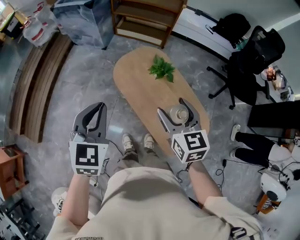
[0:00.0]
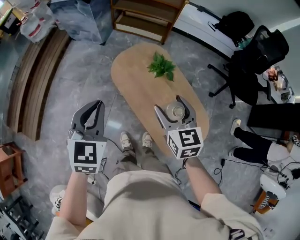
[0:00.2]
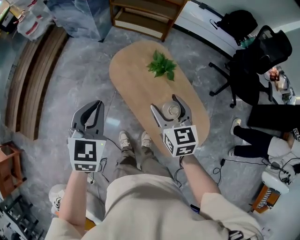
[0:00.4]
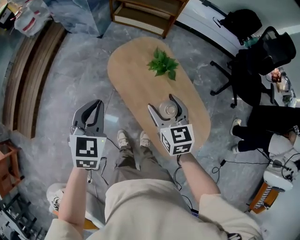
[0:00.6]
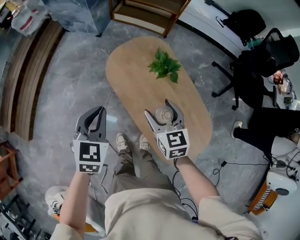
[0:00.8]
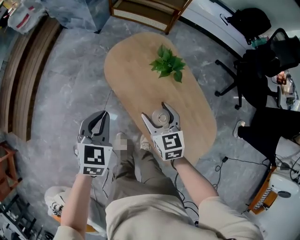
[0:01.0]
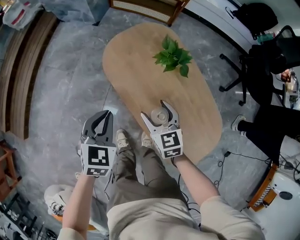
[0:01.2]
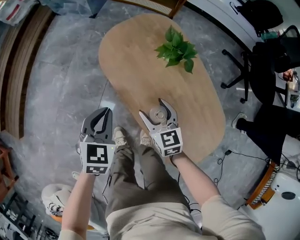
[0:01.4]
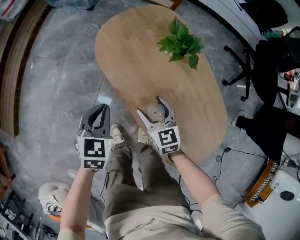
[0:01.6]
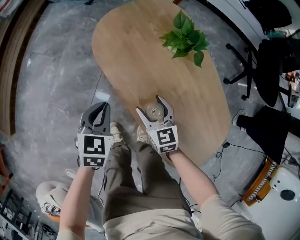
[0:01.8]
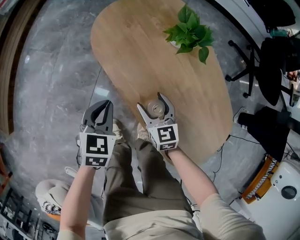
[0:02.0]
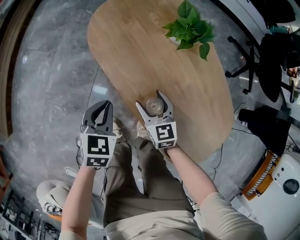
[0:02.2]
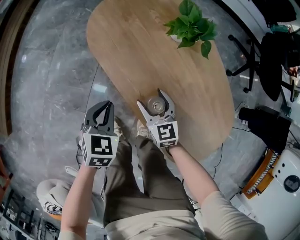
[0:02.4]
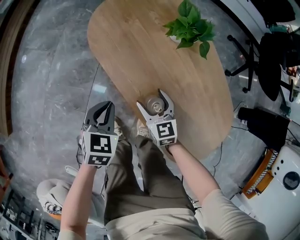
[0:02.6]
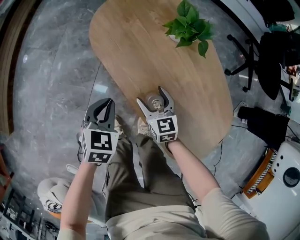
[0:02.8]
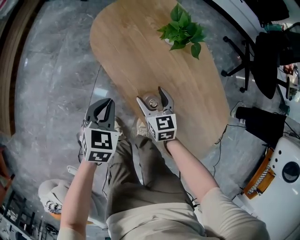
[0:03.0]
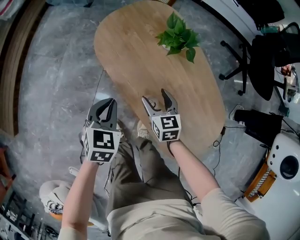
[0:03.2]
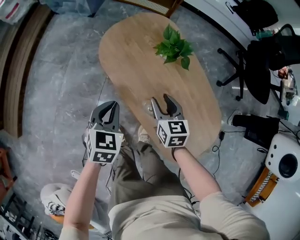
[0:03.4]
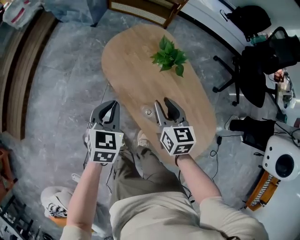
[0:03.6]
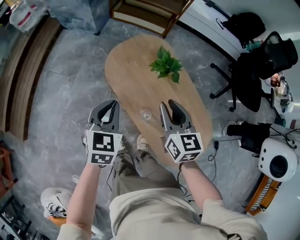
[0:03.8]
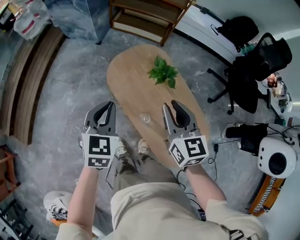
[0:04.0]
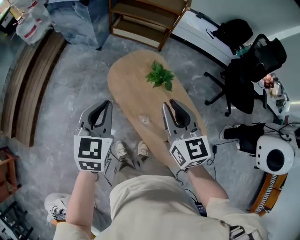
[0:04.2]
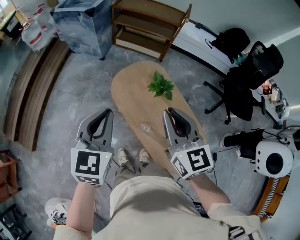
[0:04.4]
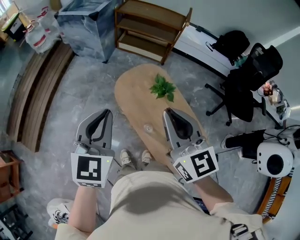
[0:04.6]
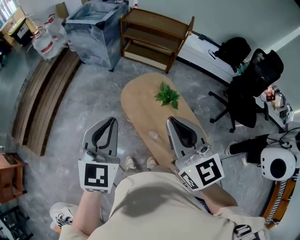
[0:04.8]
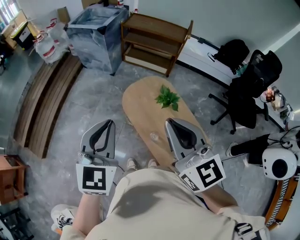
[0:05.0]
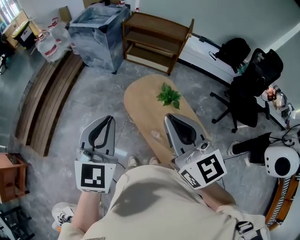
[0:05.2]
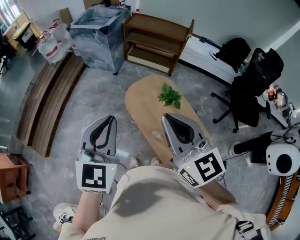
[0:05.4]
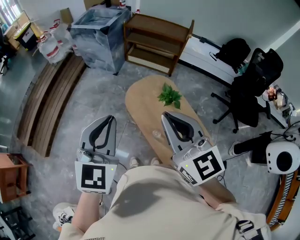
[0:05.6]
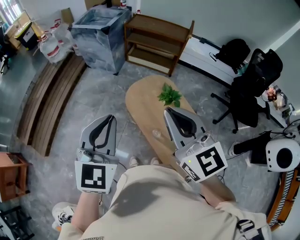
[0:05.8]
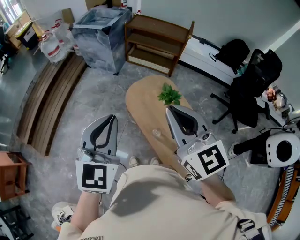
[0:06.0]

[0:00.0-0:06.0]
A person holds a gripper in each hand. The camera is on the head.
0.0 to 1.6 s: Both grippers travel together downward, some 50 cm. The left gripper swivels approximately 20 degrees.
1.6 to 3.0 s: The right gripper travels downward by some 5 cm.
3.0 to 4.4 s: Both grippers travel together upward, about 50 cm. The right gripper changes its angle by roughly 30 degrees, and closes. The left gripper rotates some 30 degrees.
4.4 to 6.0 s: The left gripper moves upward and backward, approximately 15 cm, while the right gripper goes some 15 cm upward, to the left and backward.

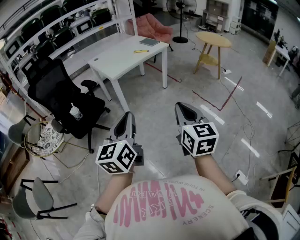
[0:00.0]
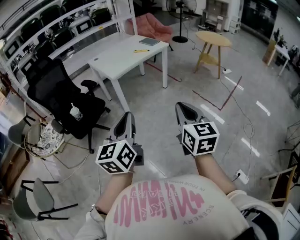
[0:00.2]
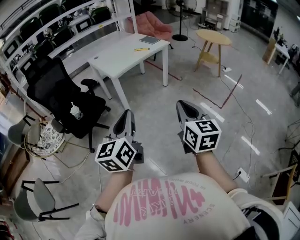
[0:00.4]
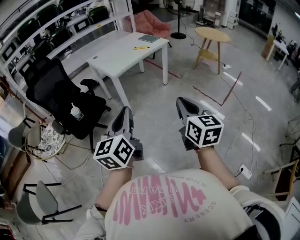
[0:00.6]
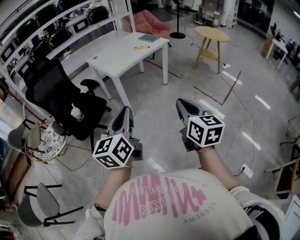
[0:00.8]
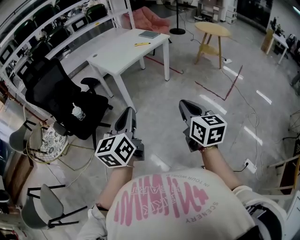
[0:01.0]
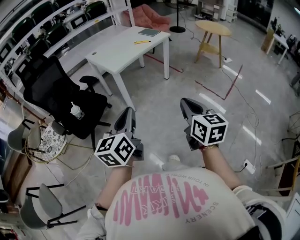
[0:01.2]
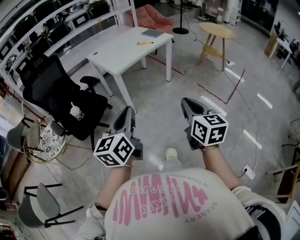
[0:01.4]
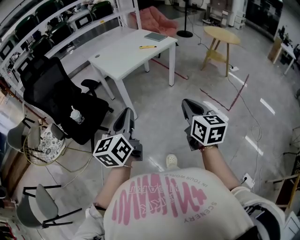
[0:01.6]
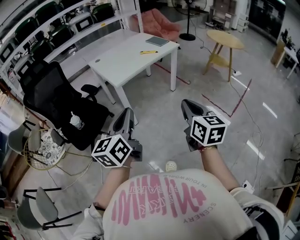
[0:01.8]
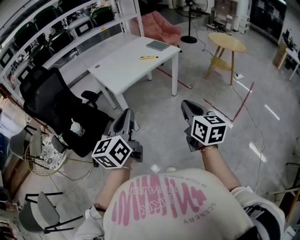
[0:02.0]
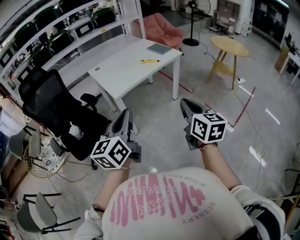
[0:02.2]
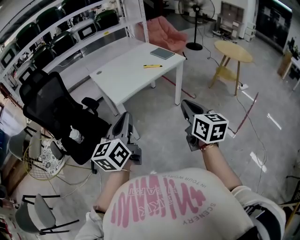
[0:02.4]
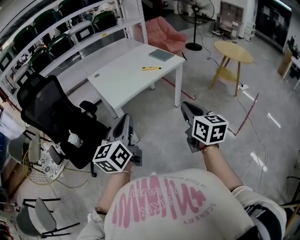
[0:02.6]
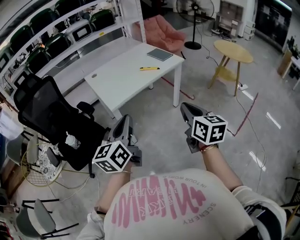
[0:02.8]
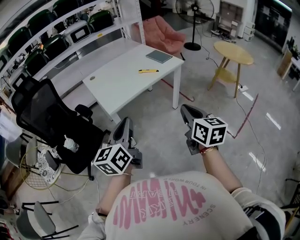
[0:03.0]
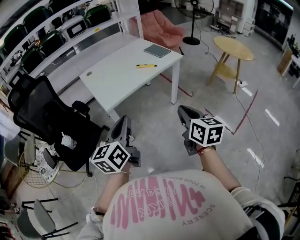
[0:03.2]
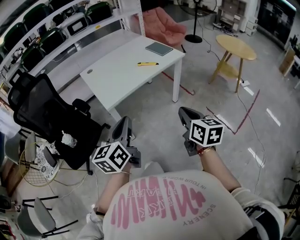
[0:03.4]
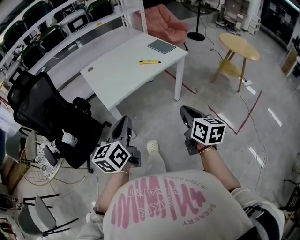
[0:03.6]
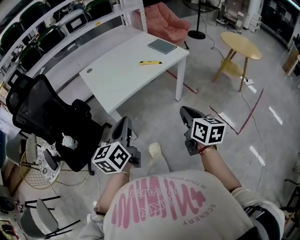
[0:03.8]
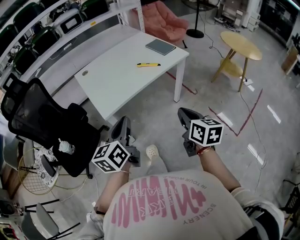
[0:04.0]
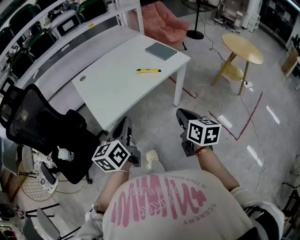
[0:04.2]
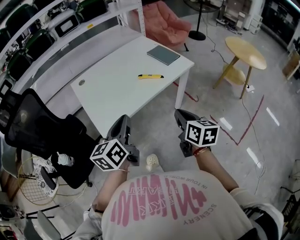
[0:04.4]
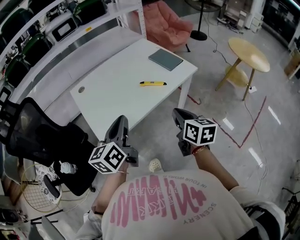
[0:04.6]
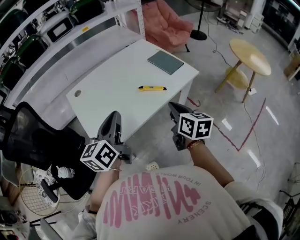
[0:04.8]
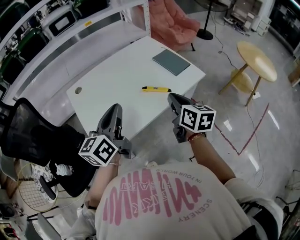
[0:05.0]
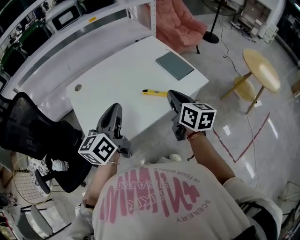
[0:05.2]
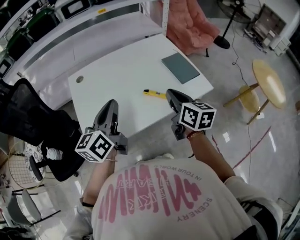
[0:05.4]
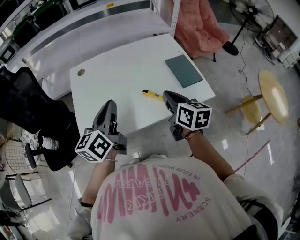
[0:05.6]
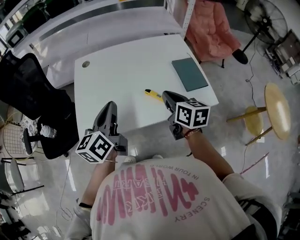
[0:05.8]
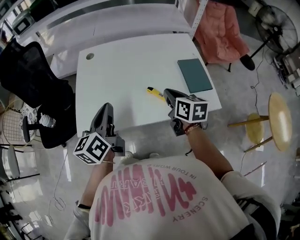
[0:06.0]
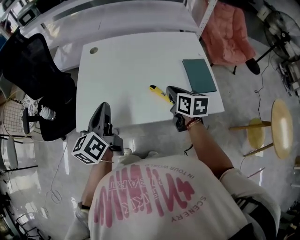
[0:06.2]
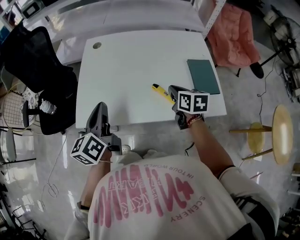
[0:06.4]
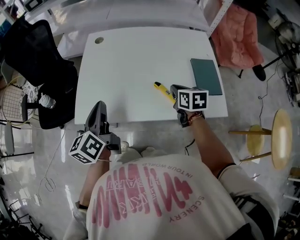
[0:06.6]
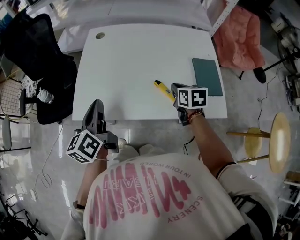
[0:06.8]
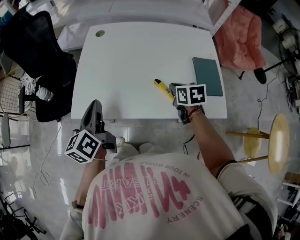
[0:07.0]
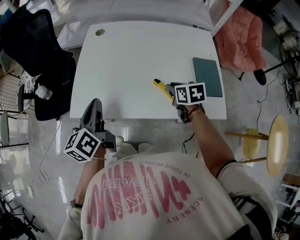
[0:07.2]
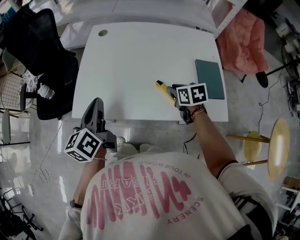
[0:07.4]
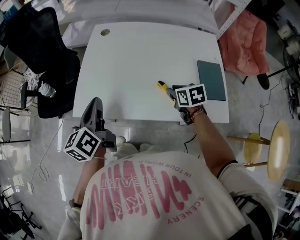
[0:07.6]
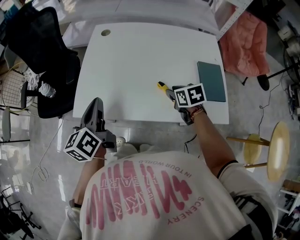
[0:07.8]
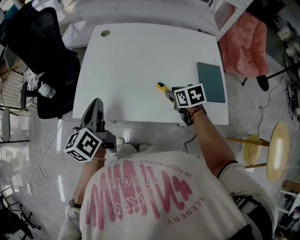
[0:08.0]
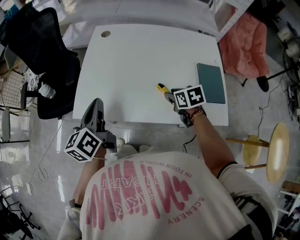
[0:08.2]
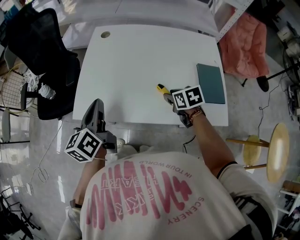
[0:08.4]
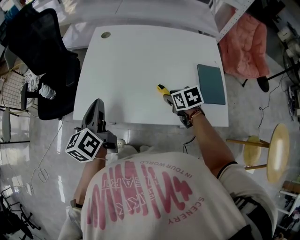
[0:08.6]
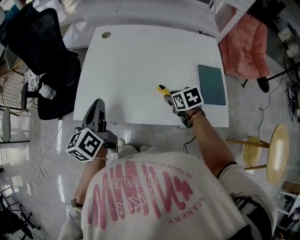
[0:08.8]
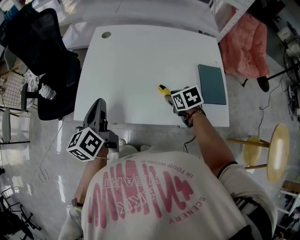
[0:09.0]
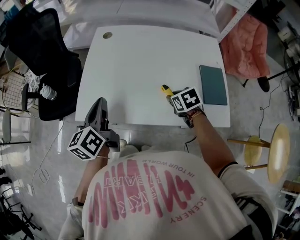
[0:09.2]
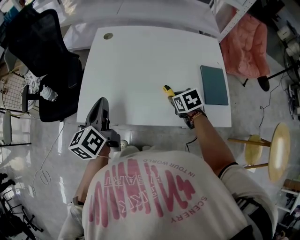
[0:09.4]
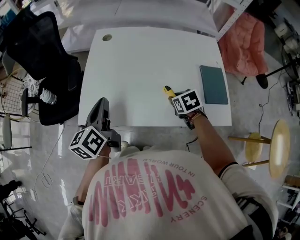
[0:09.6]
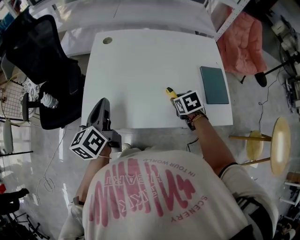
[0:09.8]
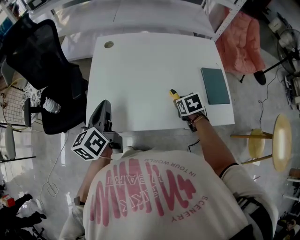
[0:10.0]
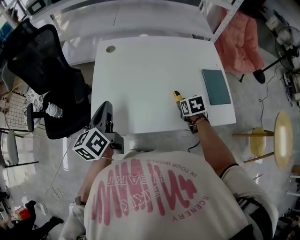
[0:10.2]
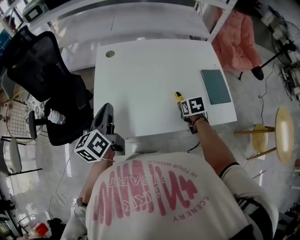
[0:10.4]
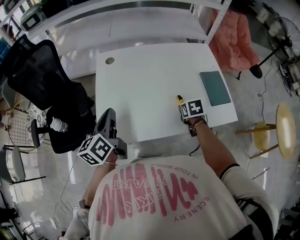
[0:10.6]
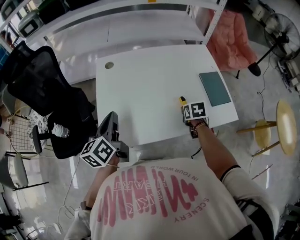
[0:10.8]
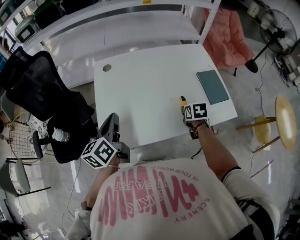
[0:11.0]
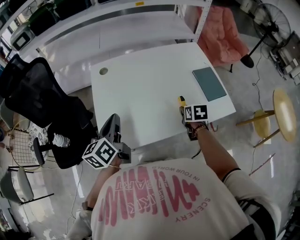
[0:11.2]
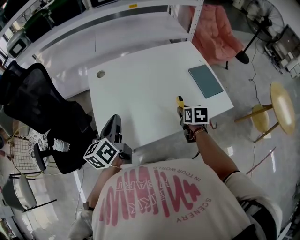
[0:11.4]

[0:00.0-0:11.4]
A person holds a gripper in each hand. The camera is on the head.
0.0 to 1.4 s: The right gripper moves forward, downward and to the left, approximately 15 cm. The left gripper goes approximately 15 cm forward, to the left and downward.
1.4 to 2.8 s: The grippers both shift forward by approximately 40 cm.
2.8 to 4.2 s: Both grippers move forward, approximately 30 cm.
4.2 to 5.6 s: The two grippers go some 40 cm forward. The right gripper rotates roughly 20 degrees; the left gripper changes its angle by about 20 degrees.
5.6 to 7.2 s: The right gripper shifts some 15 cm downward, and swivels roughly 40 degrees, while the left gripper goes about 10 cm downward, and rotates approximately 30 degrees.
7.2 to 8.6 s: There are only small adjustments of the grippers.
8.6 to 10.0 s: The left gripper goes approximately 5 cm forward.
10.0 to 11.4 s: The right gripper shifts some 5 cm upward, and turns by approximately 40 degrees.

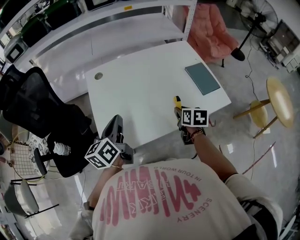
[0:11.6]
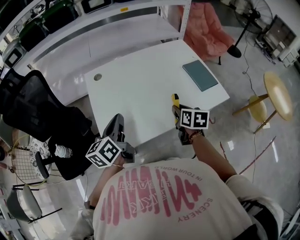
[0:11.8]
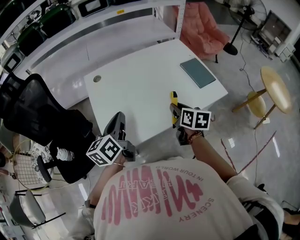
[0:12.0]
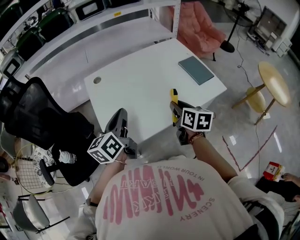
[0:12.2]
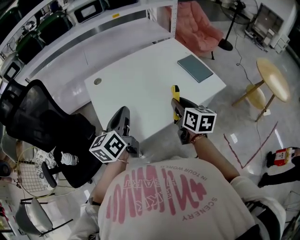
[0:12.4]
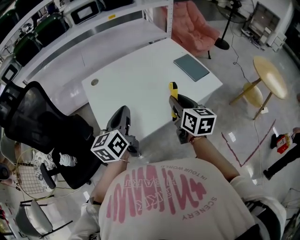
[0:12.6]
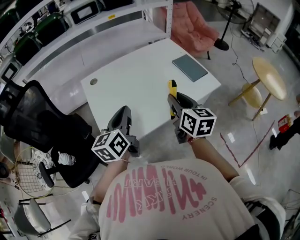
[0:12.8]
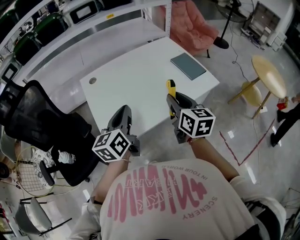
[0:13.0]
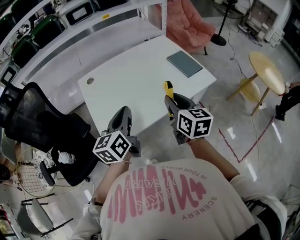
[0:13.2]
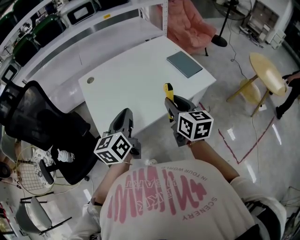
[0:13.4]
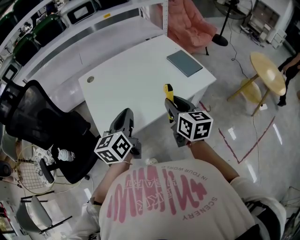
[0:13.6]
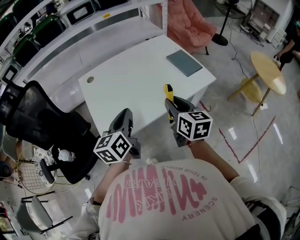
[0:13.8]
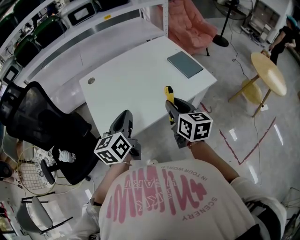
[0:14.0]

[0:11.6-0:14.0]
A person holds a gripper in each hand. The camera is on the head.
11.6 to 12.8 s: The right gripper goes some 20 cm upward and backward, and swivels about 30 degrees, while the left gripper moves backward, some 5 cm.
12.8 to 14.0 s: The right gripper ends up about 5 cm from where it was. Meanwhile the left gripper changes place by approximately 5 cm.

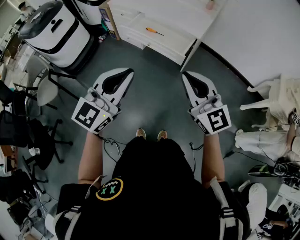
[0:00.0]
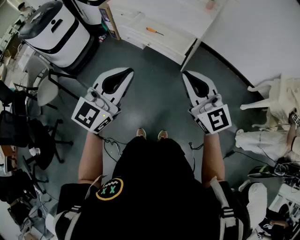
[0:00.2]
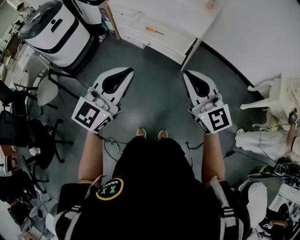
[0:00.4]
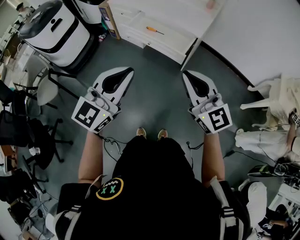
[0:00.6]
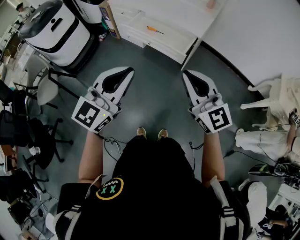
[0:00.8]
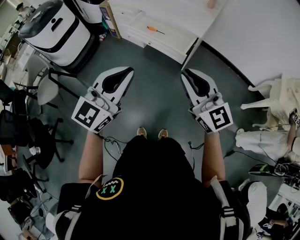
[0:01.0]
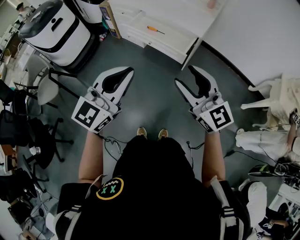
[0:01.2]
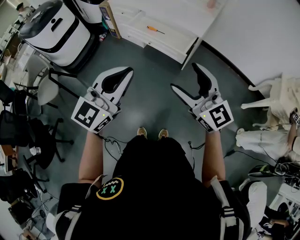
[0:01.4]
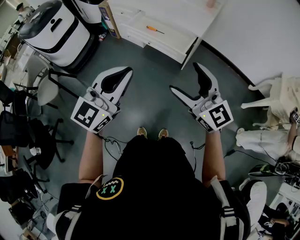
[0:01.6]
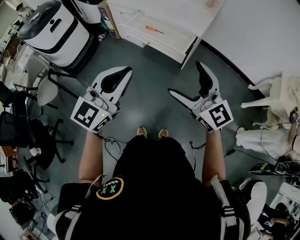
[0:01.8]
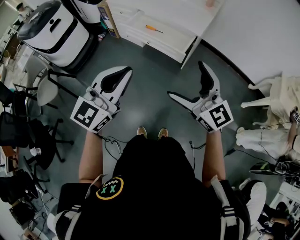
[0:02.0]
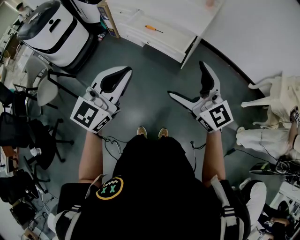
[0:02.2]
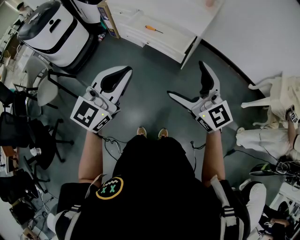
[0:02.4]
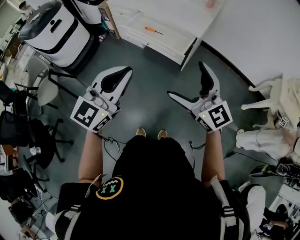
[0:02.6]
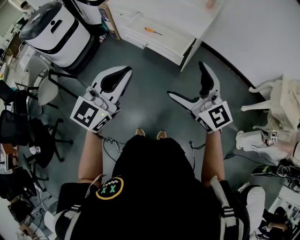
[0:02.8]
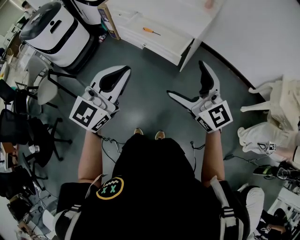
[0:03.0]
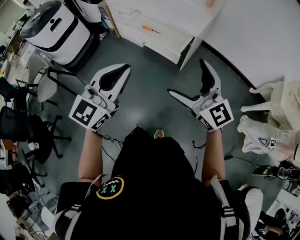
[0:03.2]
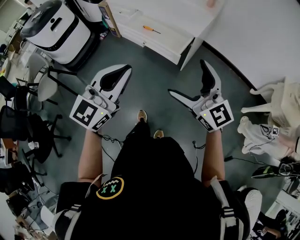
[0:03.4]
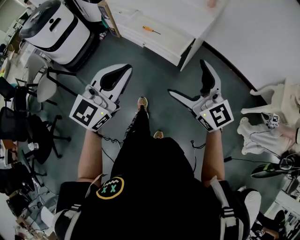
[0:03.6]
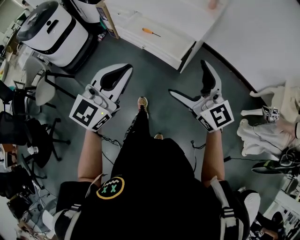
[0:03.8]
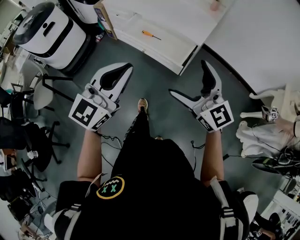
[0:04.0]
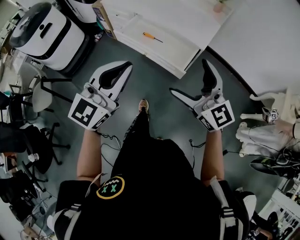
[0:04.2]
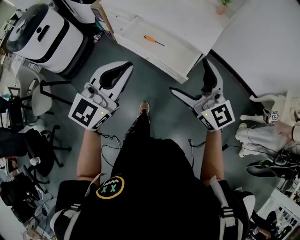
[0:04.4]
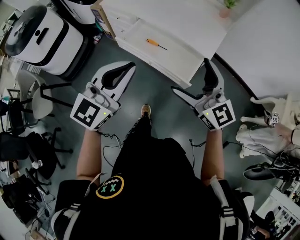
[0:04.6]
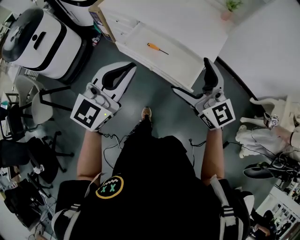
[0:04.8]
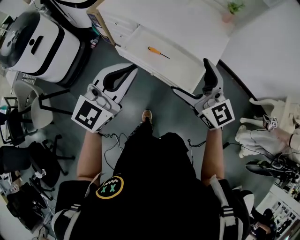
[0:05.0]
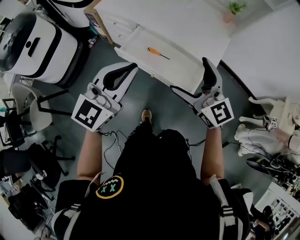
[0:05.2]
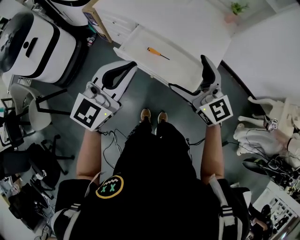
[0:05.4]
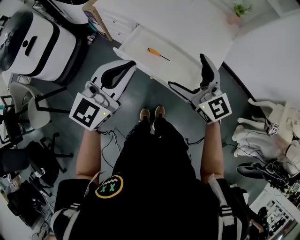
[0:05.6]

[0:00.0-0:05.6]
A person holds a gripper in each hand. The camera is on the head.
0.0 to 1.4 s: The right gripper opens.
1.4 to 2.8 s: The grippers move only a little.
2.8 to 4.2 s: Both grippers move forward, roughly 20 cm.
4.2 to 5.6 s: The grippers both shift forward by about 25 cm.
